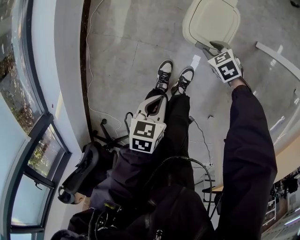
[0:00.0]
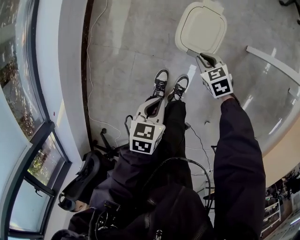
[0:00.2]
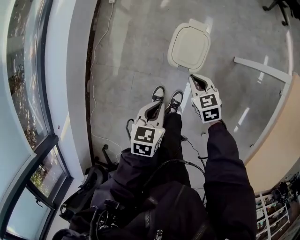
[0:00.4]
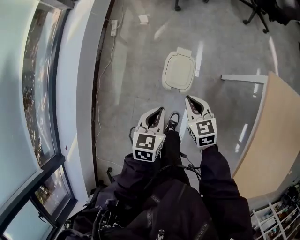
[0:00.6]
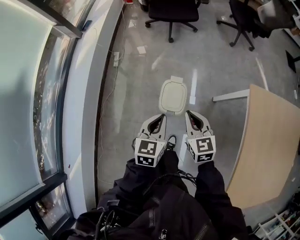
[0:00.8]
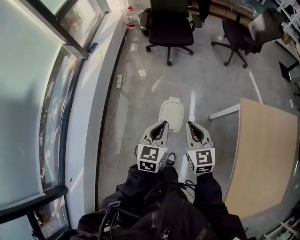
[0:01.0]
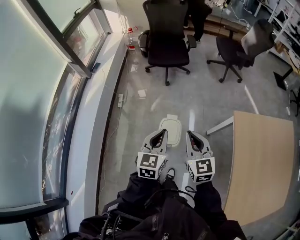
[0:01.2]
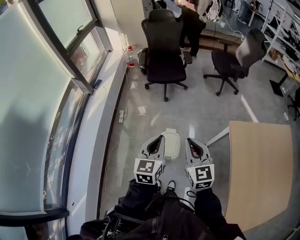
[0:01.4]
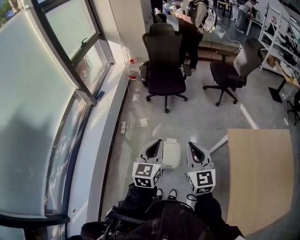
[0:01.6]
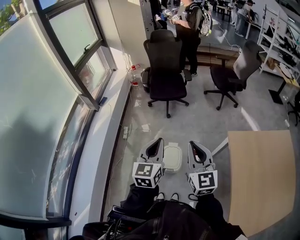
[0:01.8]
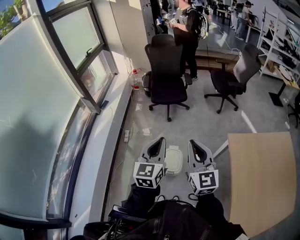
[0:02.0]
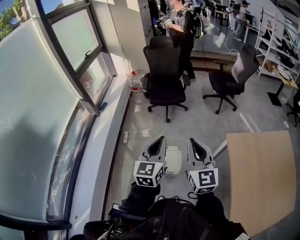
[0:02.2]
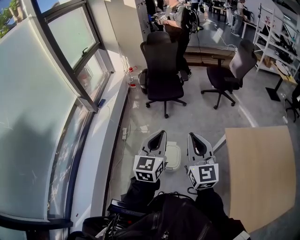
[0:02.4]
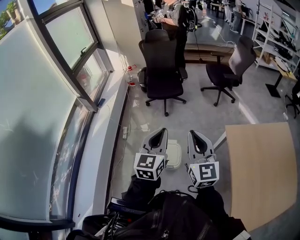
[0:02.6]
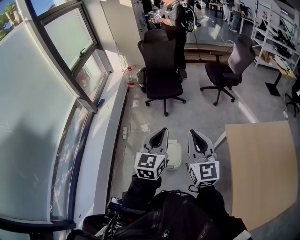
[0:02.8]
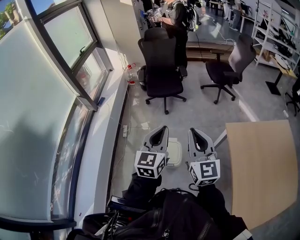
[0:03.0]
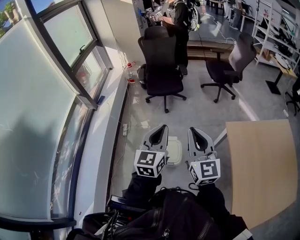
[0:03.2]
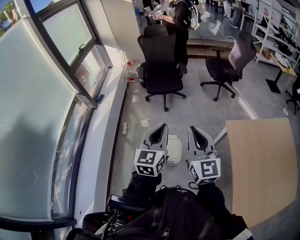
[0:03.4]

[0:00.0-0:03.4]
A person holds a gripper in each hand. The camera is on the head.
0.0 to 1.6 s: The grippers both shift upward by some 70 cm. The left gripper tips its fingers upward by about 50 degrees; the right gripper points its fingers about 60 degrees further upward, and closes.
1.6 to 3.4 s: Both grippers move upward, some 10 cm.

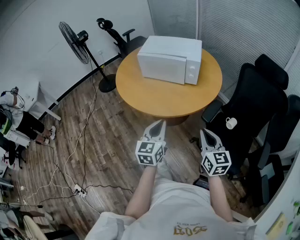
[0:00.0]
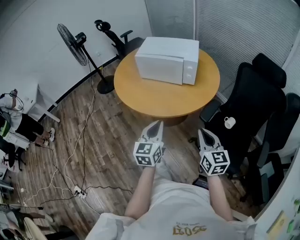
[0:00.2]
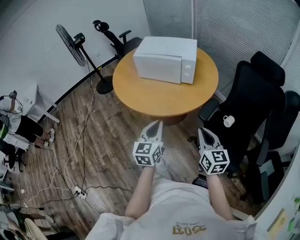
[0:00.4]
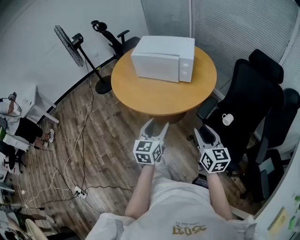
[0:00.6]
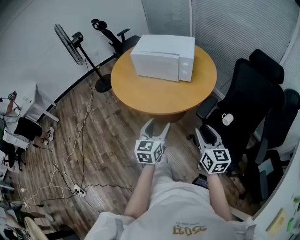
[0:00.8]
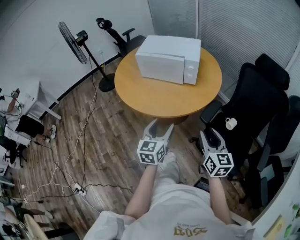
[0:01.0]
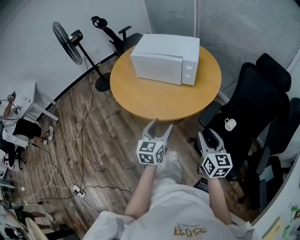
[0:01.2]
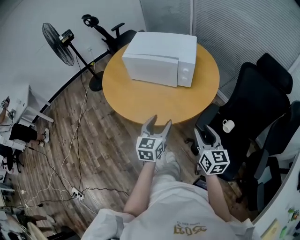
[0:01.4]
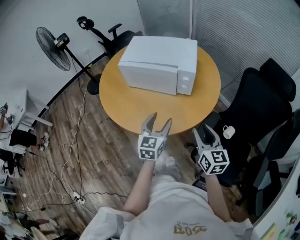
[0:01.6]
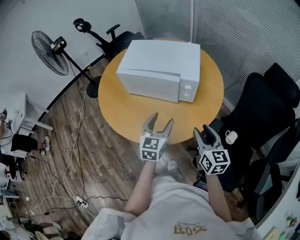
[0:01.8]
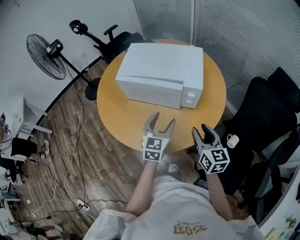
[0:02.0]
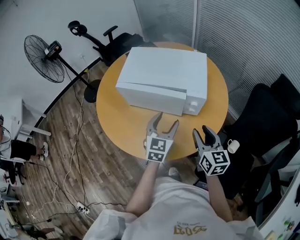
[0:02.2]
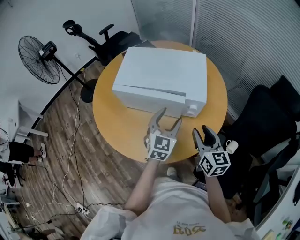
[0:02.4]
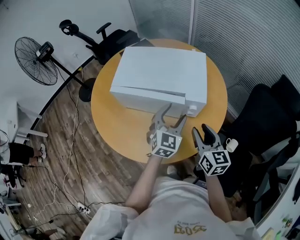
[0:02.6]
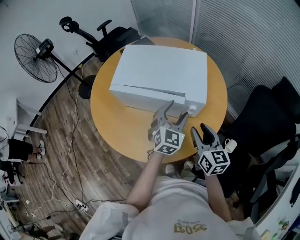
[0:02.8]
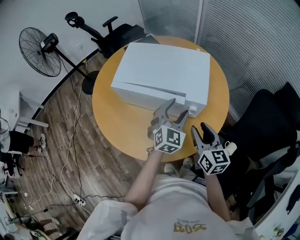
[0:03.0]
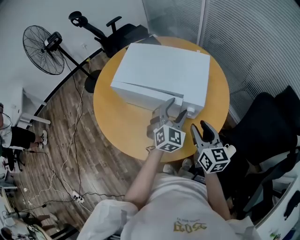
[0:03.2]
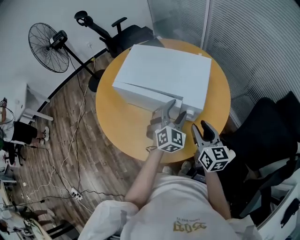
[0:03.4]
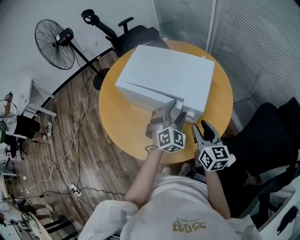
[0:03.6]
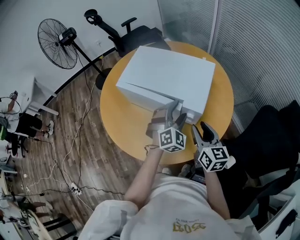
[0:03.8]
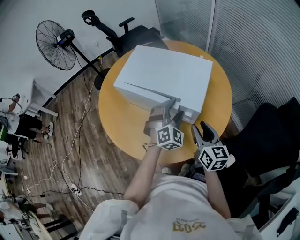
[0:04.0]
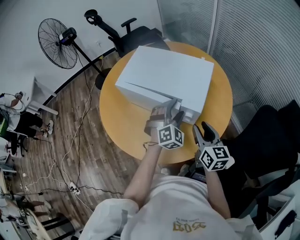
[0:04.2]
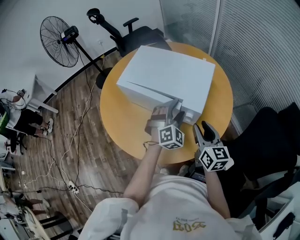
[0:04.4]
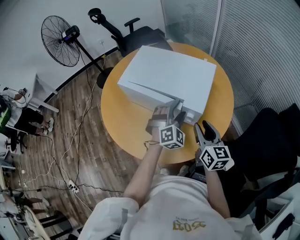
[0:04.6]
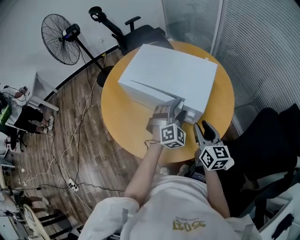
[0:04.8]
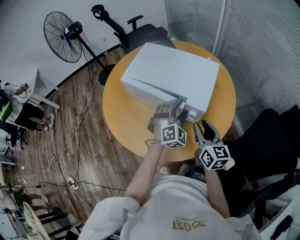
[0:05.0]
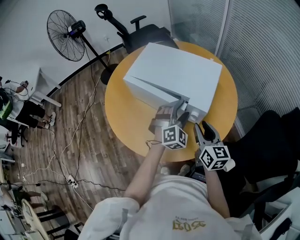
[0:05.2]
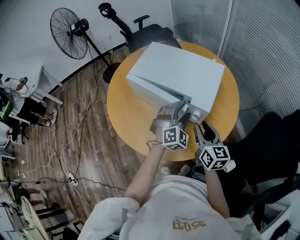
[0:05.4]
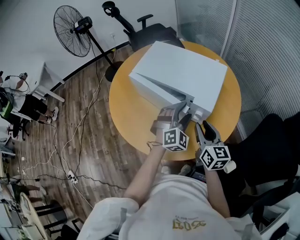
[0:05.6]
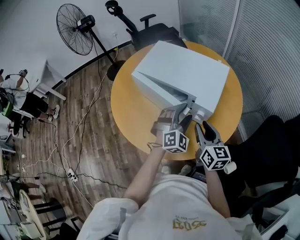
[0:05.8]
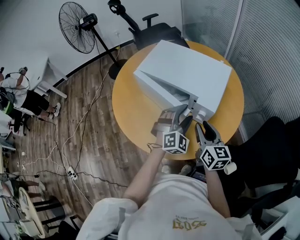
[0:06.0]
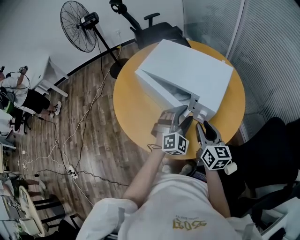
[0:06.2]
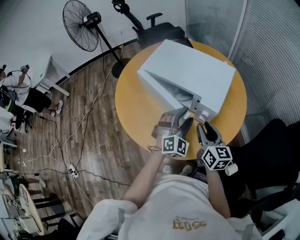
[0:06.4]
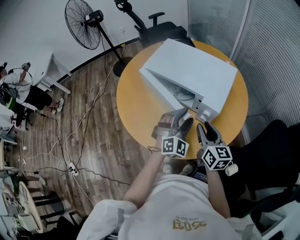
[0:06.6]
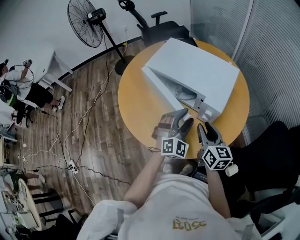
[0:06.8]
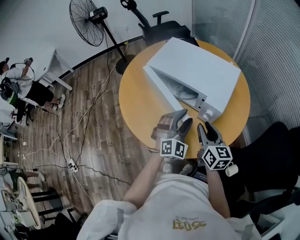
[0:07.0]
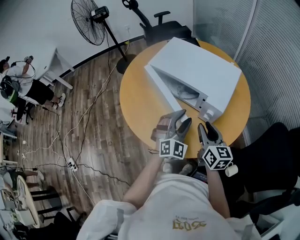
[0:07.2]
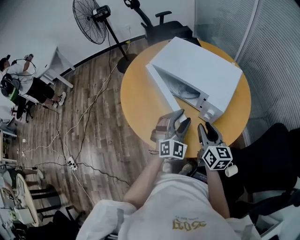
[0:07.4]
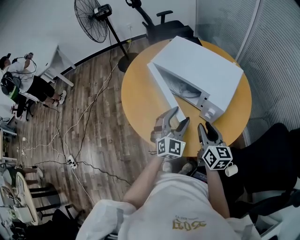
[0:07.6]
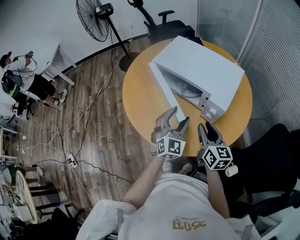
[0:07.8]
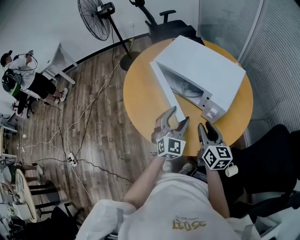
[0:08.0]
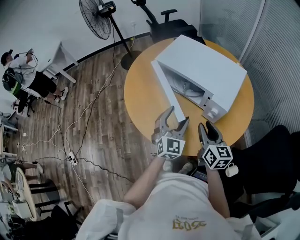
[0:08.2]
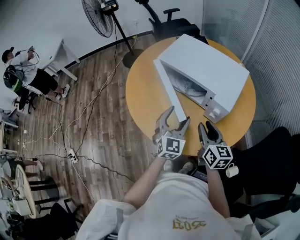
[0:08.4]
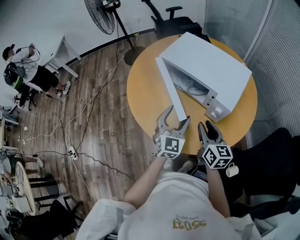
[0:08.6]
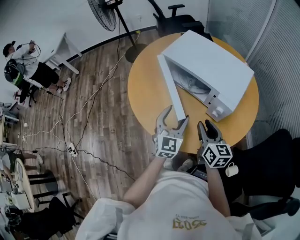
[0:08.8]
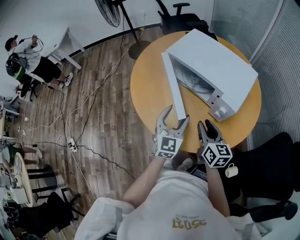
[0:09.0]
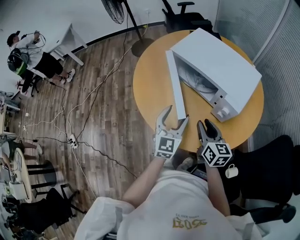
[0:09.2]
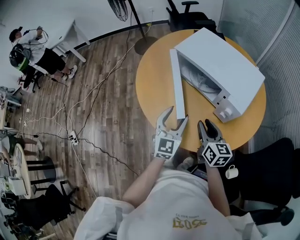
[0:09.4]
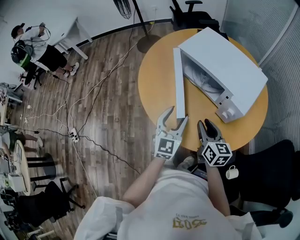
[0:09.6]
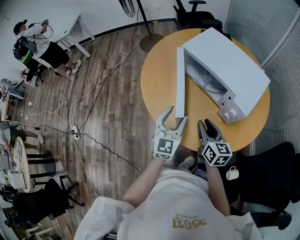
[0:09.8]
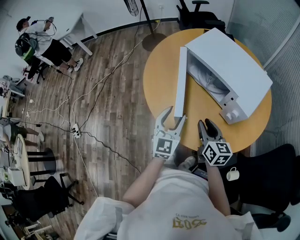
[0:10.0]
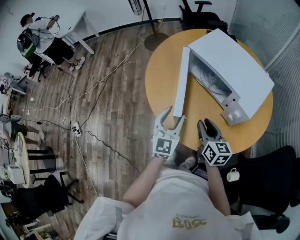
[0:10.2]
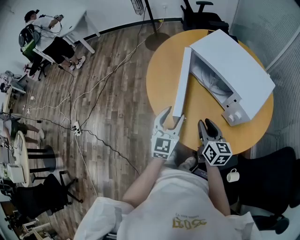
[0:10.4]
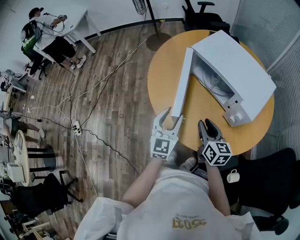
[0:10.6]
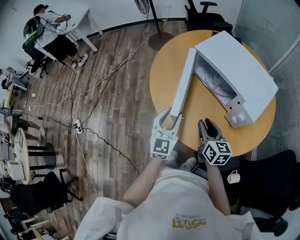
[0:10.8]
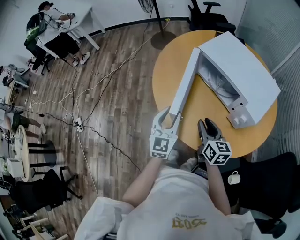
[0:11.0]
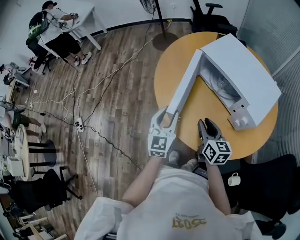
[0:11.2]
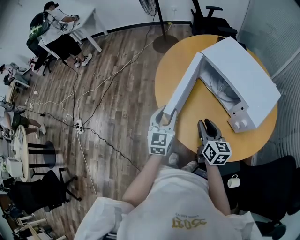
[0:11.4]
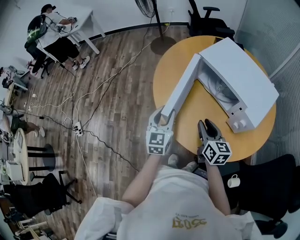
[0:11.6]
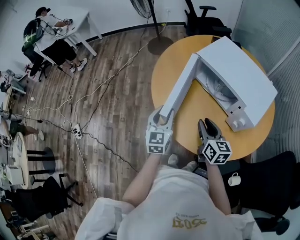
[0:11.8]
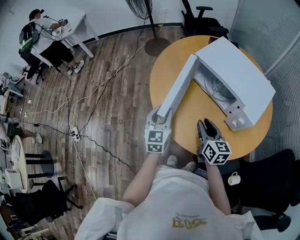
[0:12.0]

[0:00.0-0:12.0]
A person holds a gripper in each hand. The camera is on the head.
0.0 to 1.6 s: Both grippers move forward, about 20 cm. The left gripper opens. Meanwhile the right gripper opens its fingers.
1.6 to 3.0 s: The grippers both shift forward by roughly 20 cm. The left gripper changes its angle by roughly 30 degrees.
3.0 to 4.4 s: The right gripper shifts by roughly 5 cm; the left gripper ends up roughly 5 cm from where it was, and changes its angle by about 30 degrees.
4.4 to 6.0 s: The grippers move only a little.
6.0 to 7.6 s: The left gripper shifts roughly 10 cm to the left, and swivels some 20 degrees.
7.6 to 9.0 s: The left gripper is displaced to the left by roughly 5 cm, and swivels roughly 30 degrees.
9.0 to 10.4 s: Both grippers travel together to the left, roughly 5 cm.
10.4 to 12.0 s: The left gripper moves to the left and forward, roughly 10 cm.

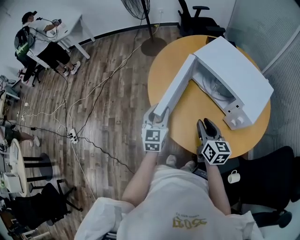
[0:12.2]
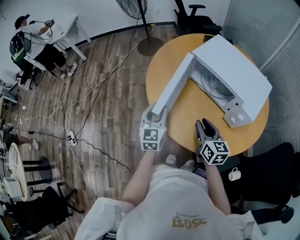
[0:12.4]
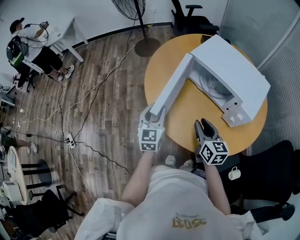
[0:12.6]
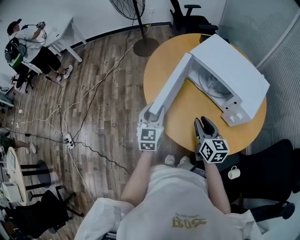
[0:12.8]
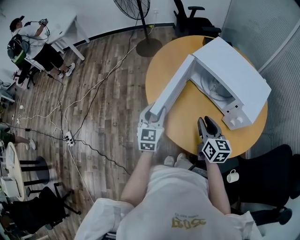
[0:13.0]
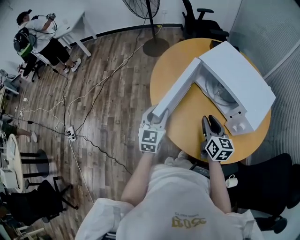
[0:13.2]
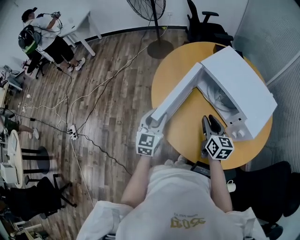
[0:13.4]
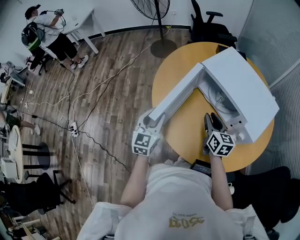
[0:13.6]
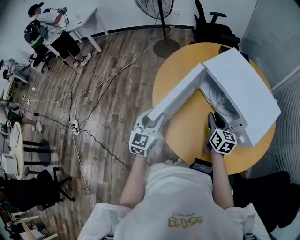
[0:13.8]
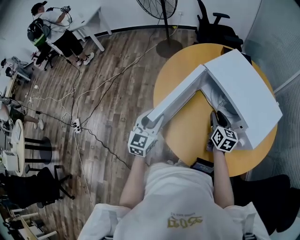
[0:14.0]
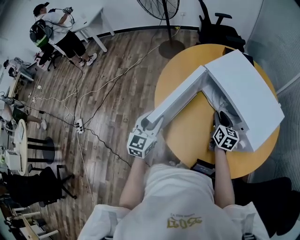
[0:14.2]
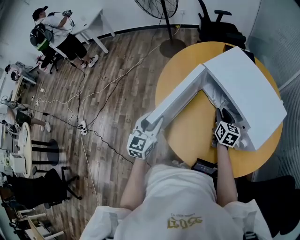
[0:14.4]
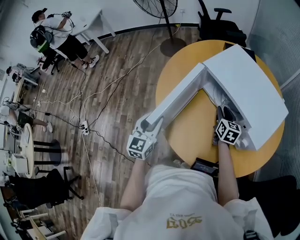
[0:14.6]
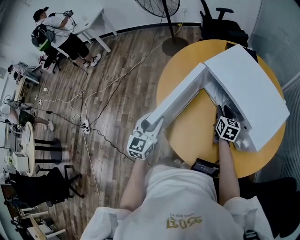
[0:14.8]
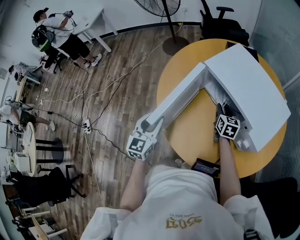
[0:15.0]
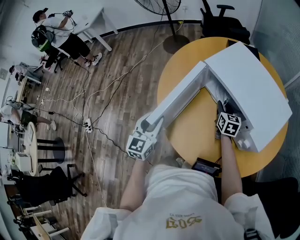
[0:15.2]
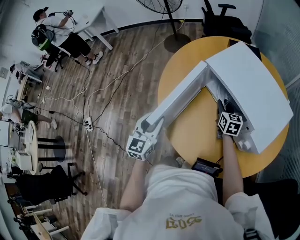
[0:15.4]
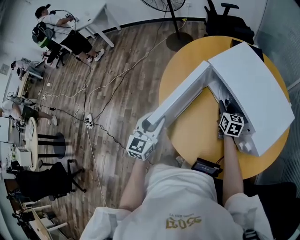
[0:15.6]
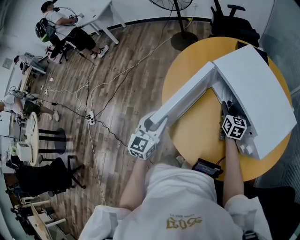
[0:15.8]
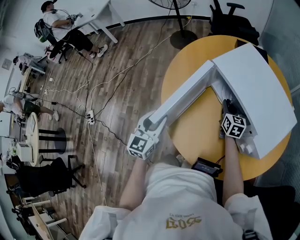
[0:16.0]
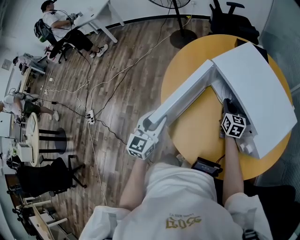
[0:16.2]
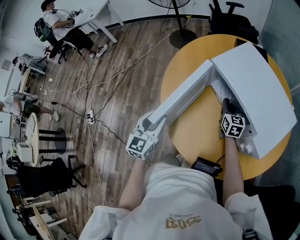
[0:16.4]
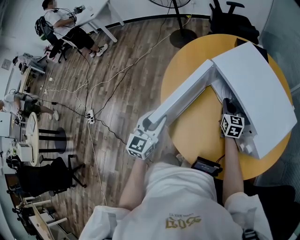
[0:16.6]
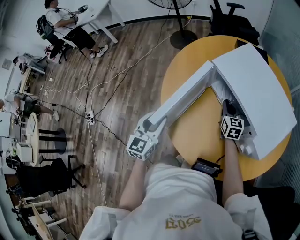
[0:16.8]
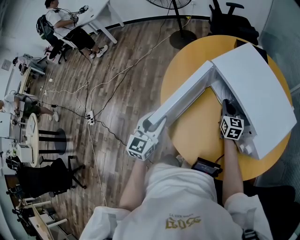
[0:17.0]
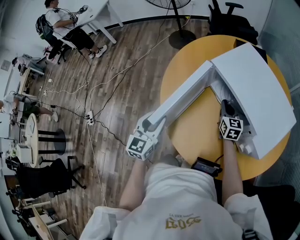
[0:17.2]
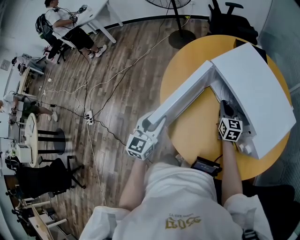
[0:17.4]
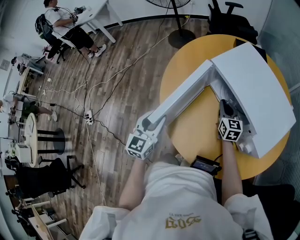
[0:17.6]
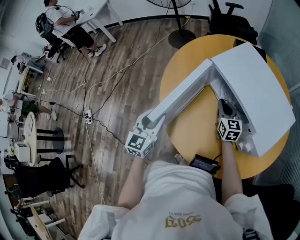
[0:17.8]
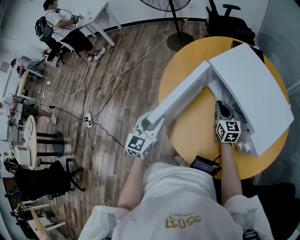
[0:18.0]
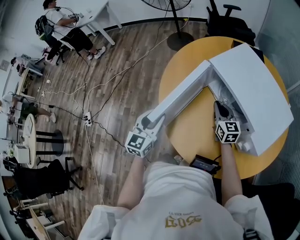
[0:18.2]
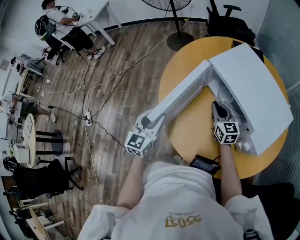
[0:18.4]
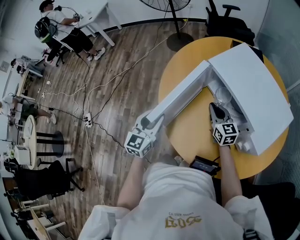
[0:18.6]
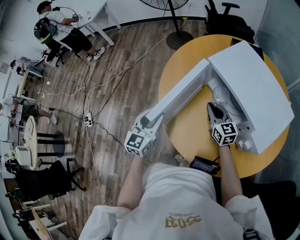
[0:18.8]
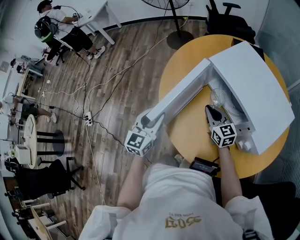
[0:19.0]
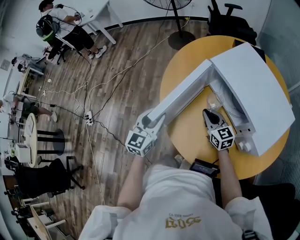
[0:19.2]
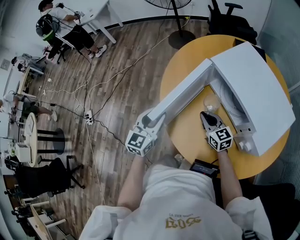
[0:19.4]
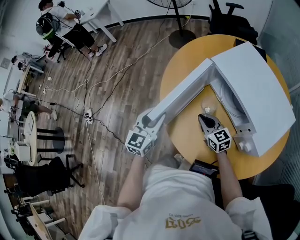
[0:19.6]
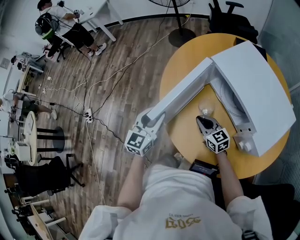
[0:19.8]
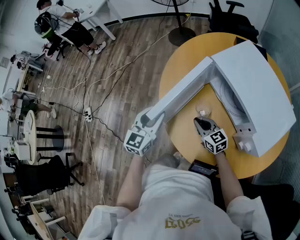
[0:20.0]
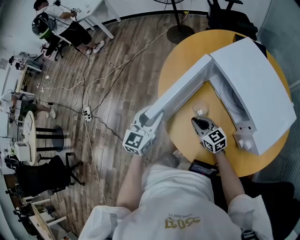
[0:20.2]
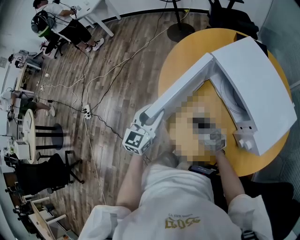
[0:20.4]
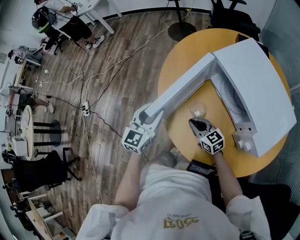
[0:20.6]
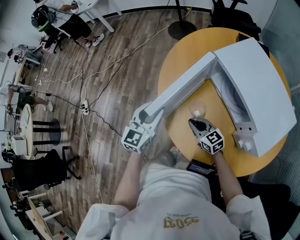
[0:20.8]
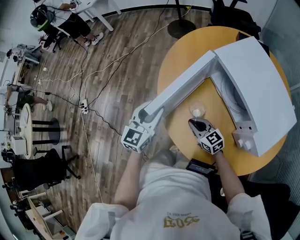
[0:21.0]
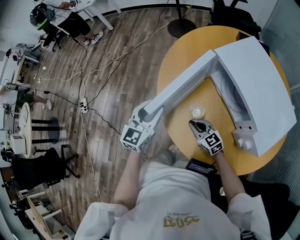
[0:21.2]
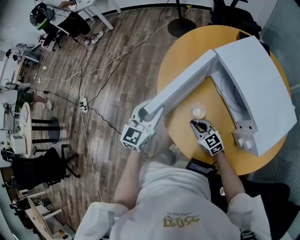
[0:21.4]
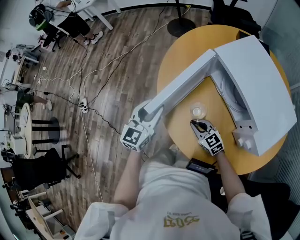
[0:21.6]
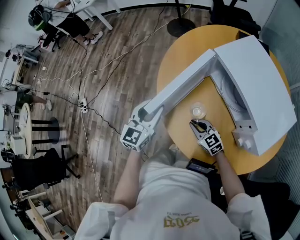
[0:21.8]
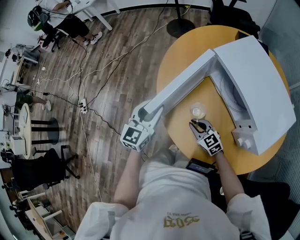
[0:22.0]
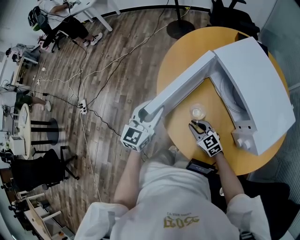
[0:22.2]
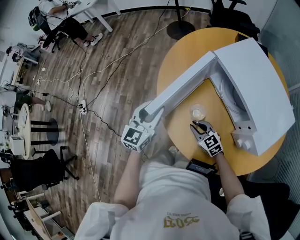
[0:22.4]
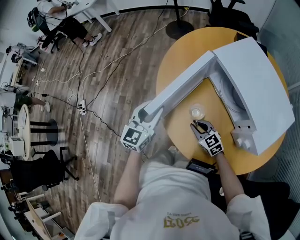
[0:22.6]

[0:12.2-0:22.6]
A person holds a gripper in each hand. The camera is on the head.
12.2 to 13.6 s: The right gripper shifts some 10 cm forward.
13.6 to 15.2 s: The right gripper shifts approximately 15 cm forward, downward and to the right.
15.2 to 16.6 s: The right gripper closes up.
16.6 to 18.2 s: The right gripper shifts by roughly 5 cm.
18.2 to 19.6 s: The right gripper shifts roughly 10 cm to the left and backward, and changes its angle by about 20 degrees.
19.6 to 21.2 s: The right gripper changes place by about 10 cm.
21.2 to 22.6 s: The grippers stay close to where they were, moving slightly.
